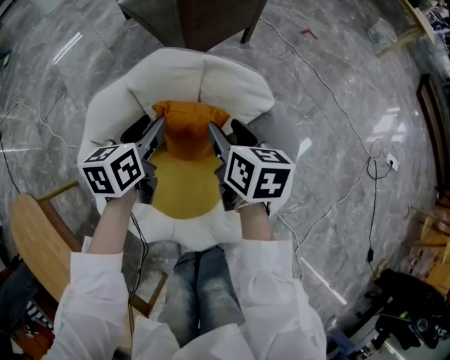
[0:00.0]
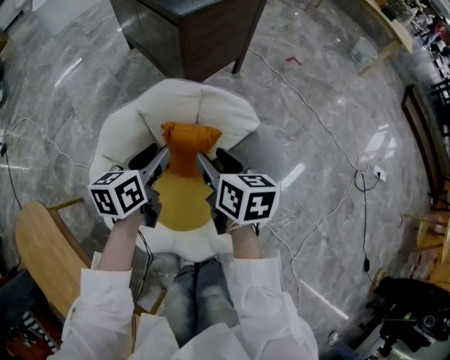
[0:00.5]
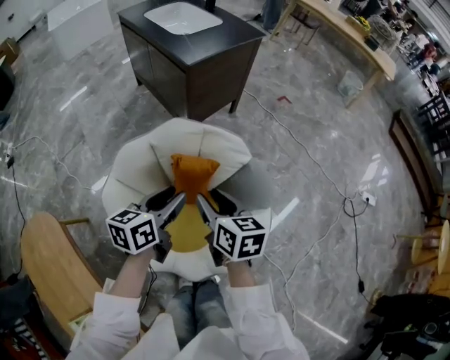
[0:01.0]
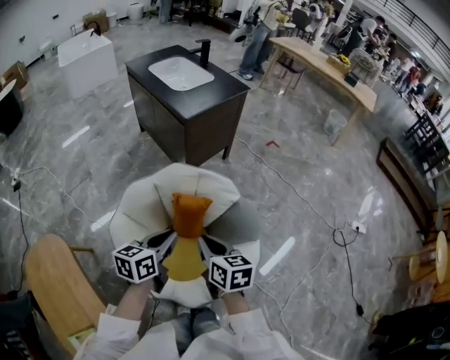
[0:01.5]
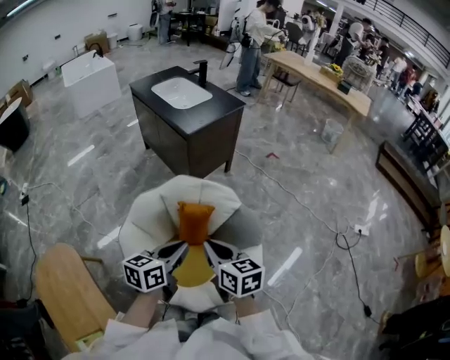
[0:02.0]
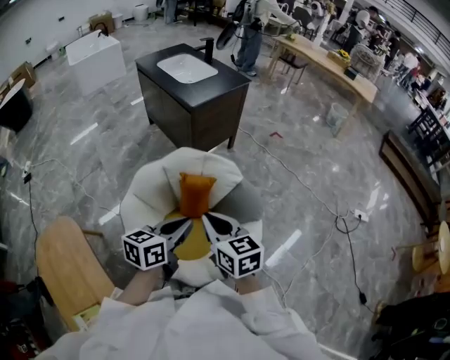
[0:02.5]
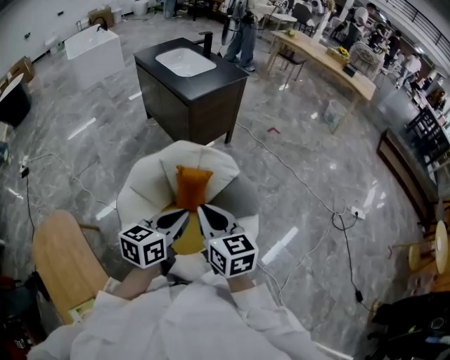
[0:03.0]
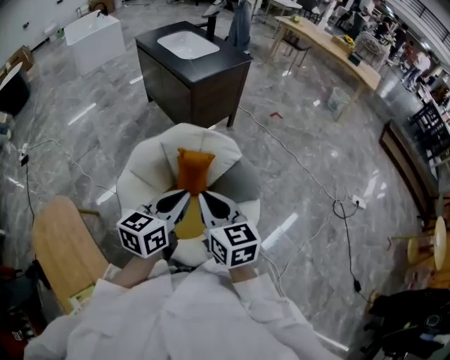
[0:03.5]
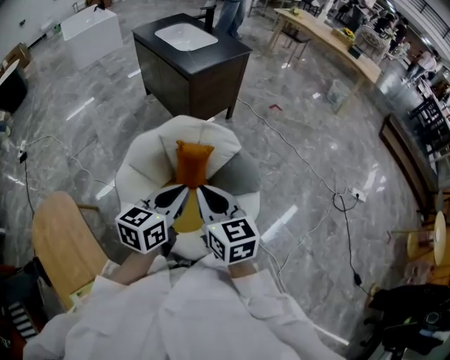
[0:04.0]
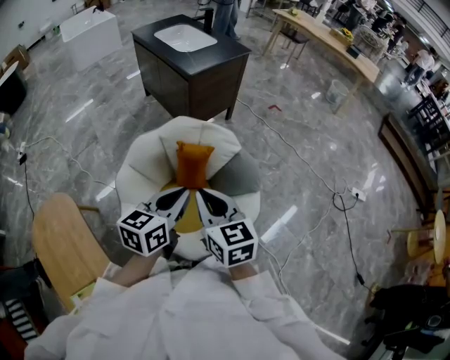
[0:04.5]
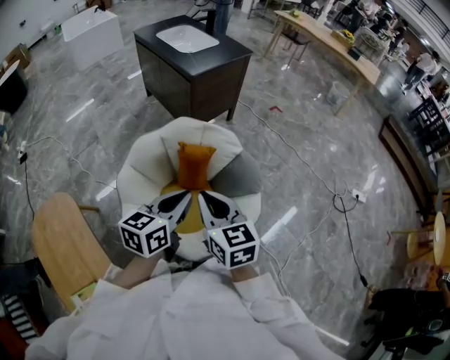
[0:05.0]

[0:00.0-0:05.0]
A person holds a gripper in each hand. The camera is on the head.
0:00.0 to 0:02.5: The grippers both shift upward and backward by roughly 50 cm. The left gripper changes its angle by roughly 20 degrees, and closes up. The right gripper rotates about 30 degrees, and closes up.
0:02.5 to 0:05.0: The grippers make only small movements.

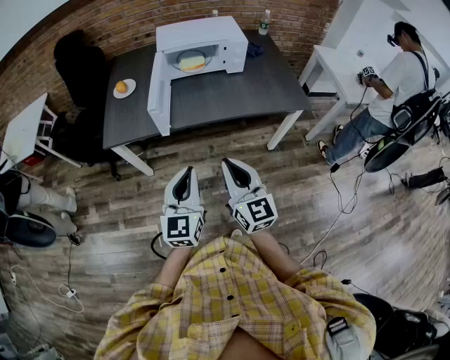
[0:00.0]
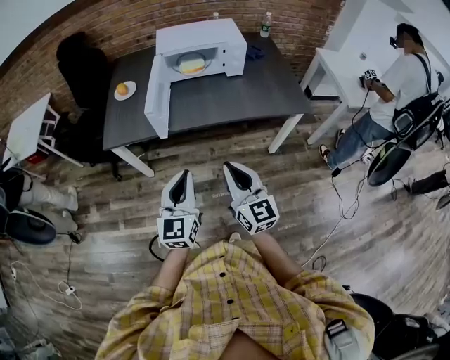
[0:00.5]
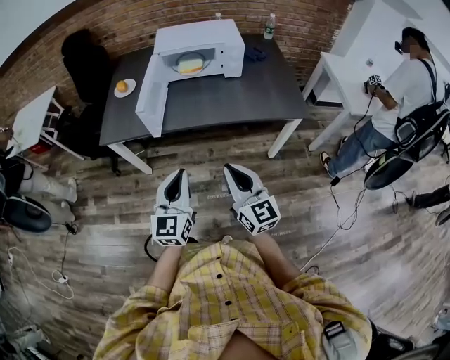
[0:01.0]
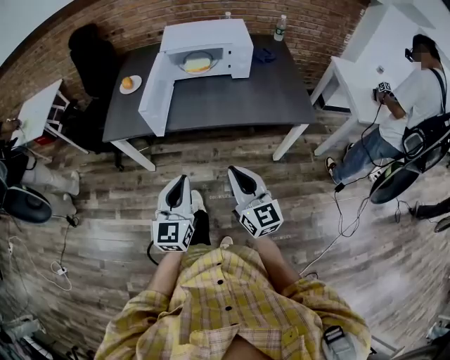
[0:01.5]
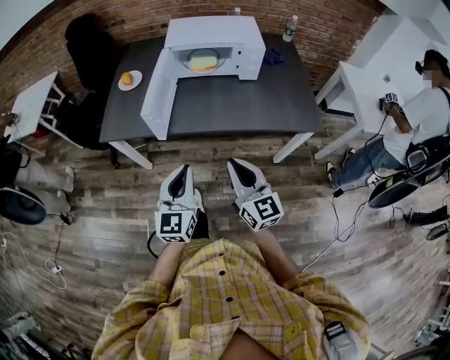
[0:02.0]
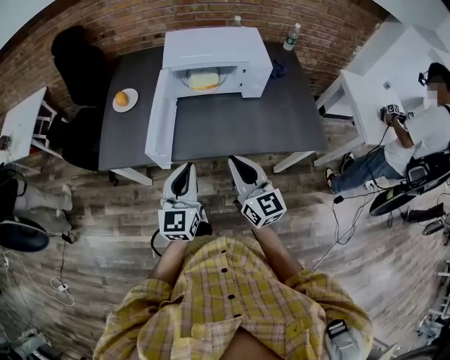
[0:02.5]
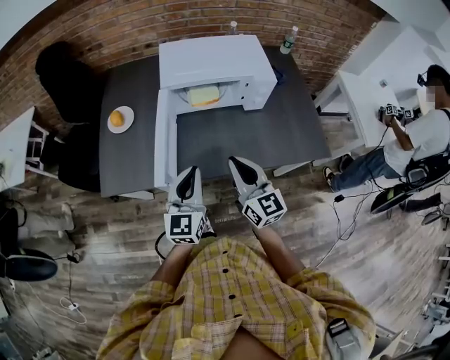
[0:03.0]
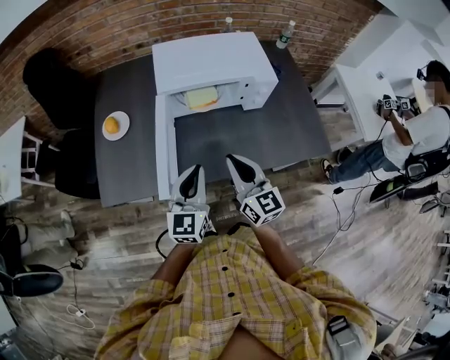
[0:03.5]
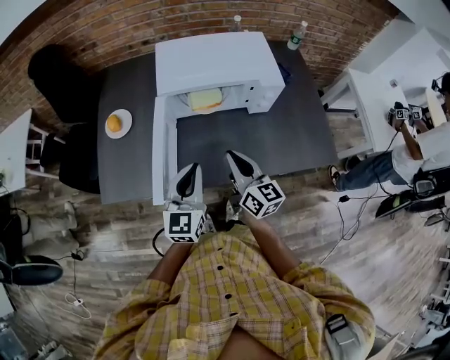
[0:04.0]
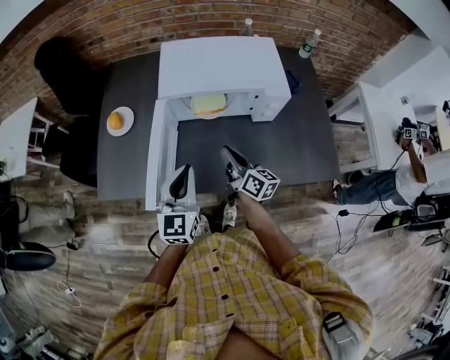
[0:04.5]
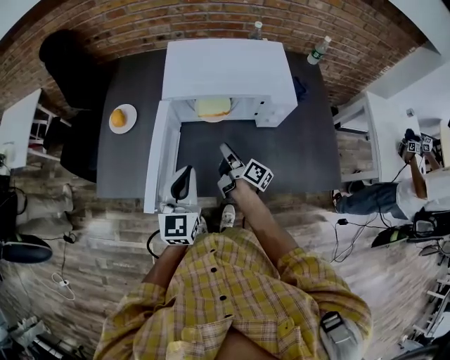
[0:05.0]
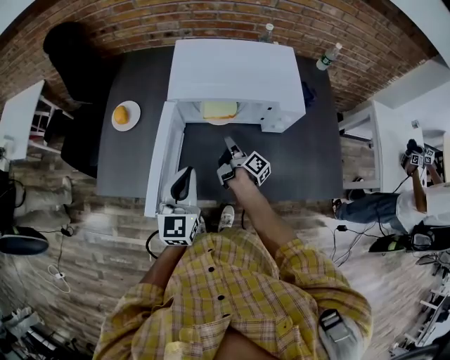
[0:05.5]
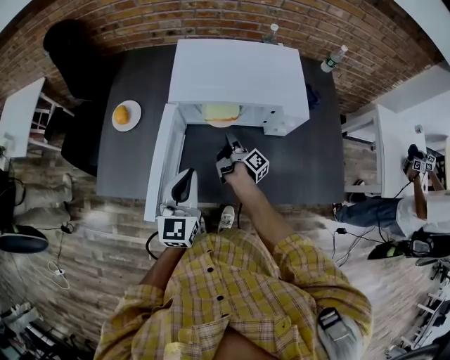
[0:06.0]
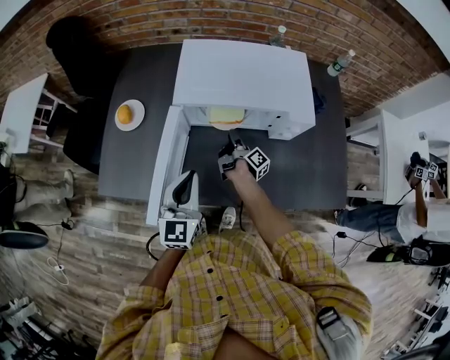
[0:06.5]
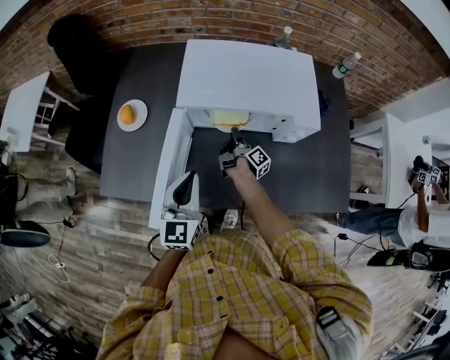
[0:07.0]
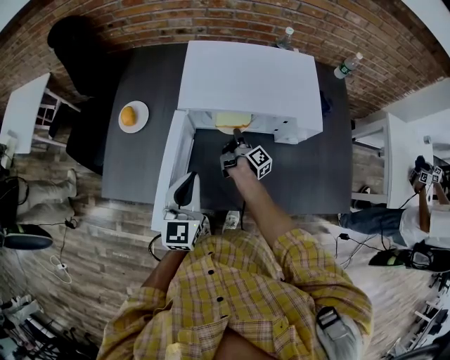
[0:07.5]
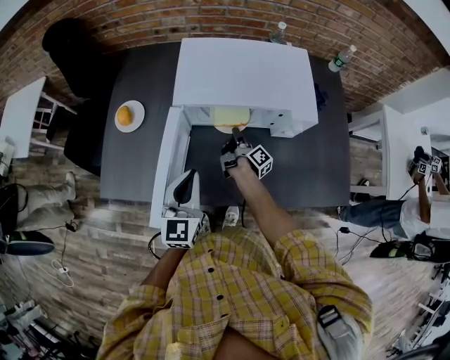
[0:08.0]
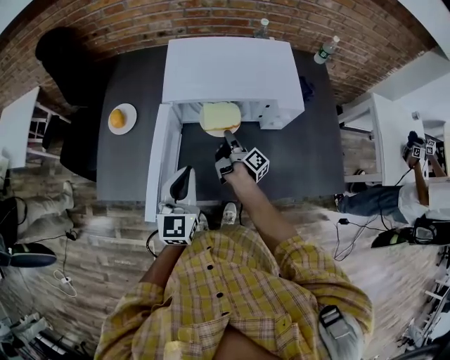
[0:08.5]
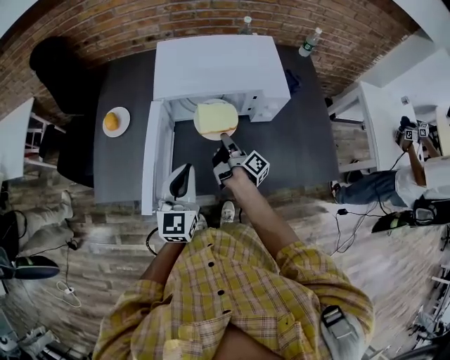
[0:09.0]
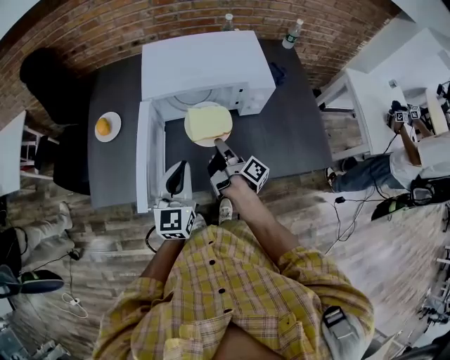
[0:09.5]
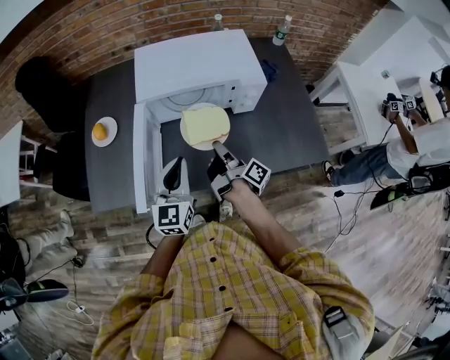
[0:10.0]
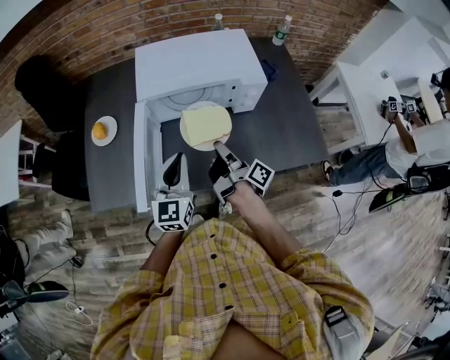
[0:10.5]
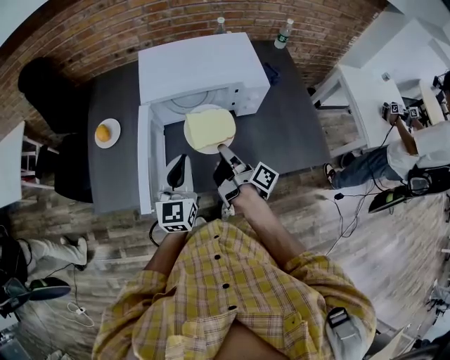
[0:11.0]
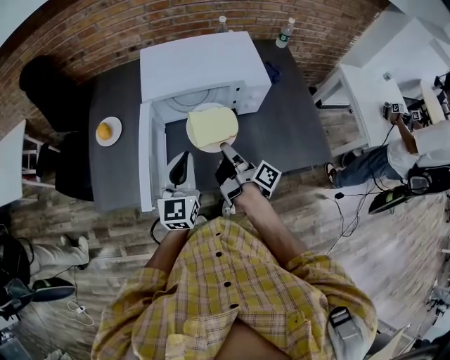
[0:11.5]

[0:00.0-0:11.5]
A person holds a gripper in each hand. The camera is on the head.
0:00.0 to 0:02.0: The right gripper shifts about 10 cm forward and to the right; the left gripper travels forward by about 5 cm.
0:02.0 to 0:04.0: Both grippers travel together forward, some 30 cm. The right gripper rotates approximately 20 degrees.
0:04.0 to 0:06.0: The left gripper shifts about 5 cm forward; the right gripper heads downward and forward, covering roughly 30 cm, rotates around the line of its fingers by roughly 70 degrees, clockwise from behind, and opens up.
0:06.0 to 0:07.5: The right gripper moves some 5 cm.
0:07.5 to 0:09.5: The left gripper goes some 5 cm to the right, while the right gripper goes some 20 cm backward and upward.
0:09.5 to 0:11.5: The right gripper moves upward, about 5 cm.

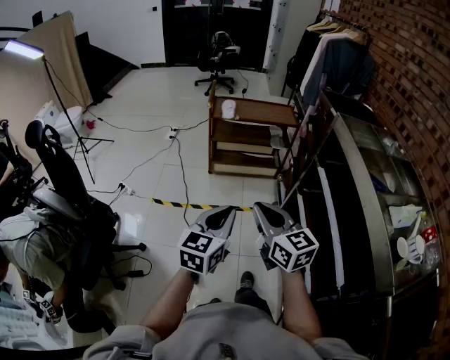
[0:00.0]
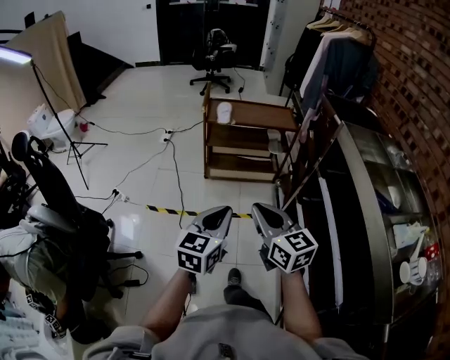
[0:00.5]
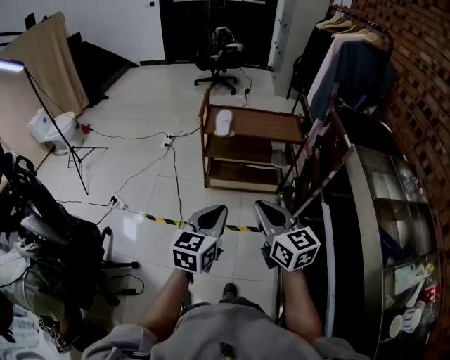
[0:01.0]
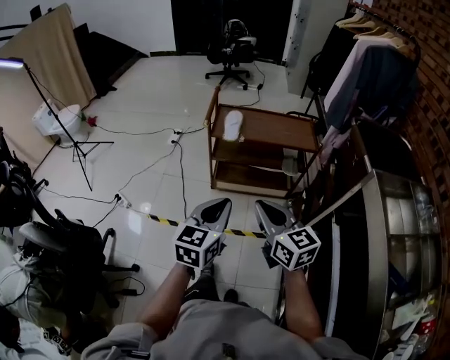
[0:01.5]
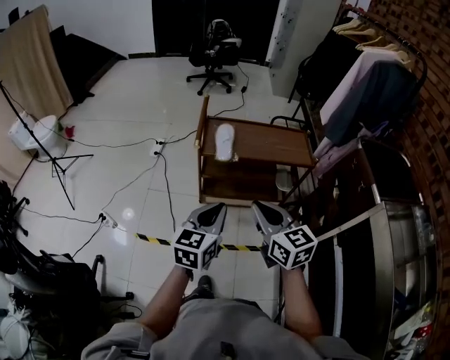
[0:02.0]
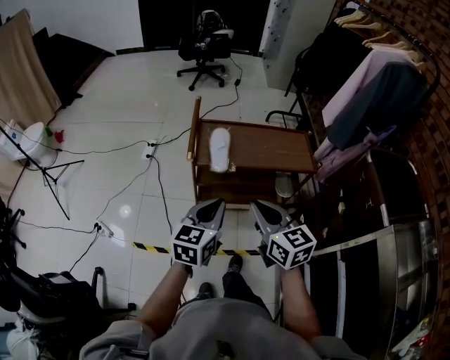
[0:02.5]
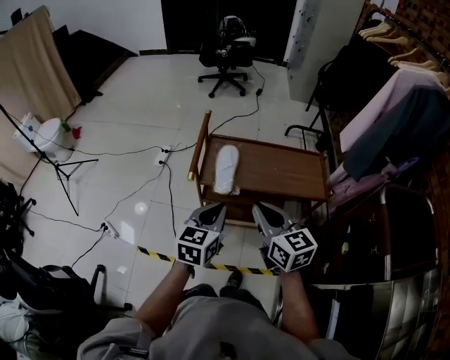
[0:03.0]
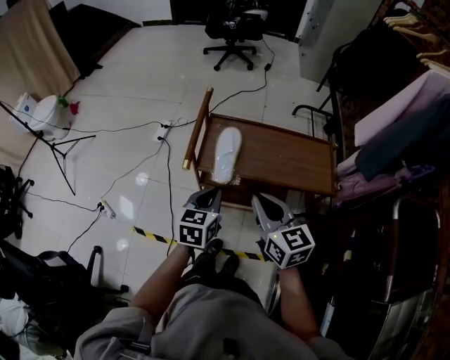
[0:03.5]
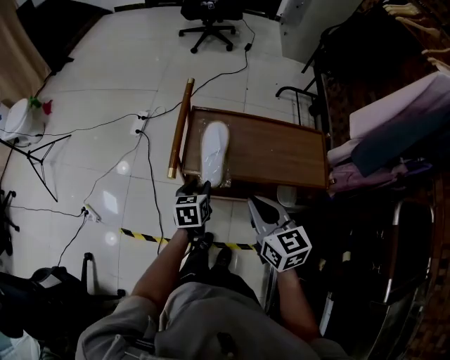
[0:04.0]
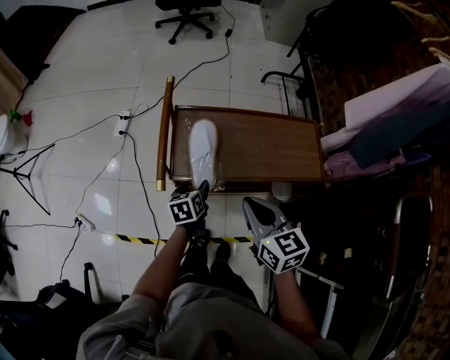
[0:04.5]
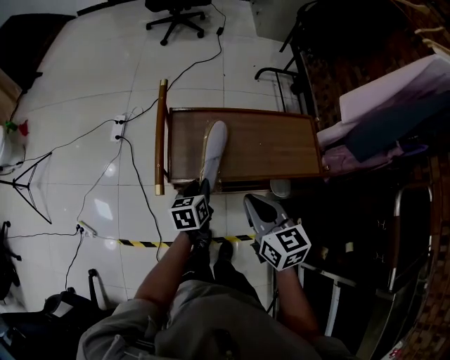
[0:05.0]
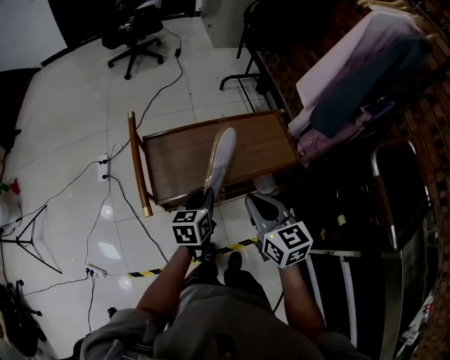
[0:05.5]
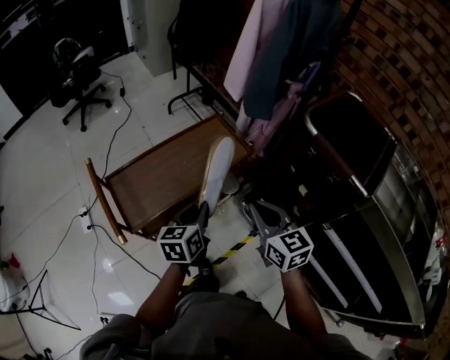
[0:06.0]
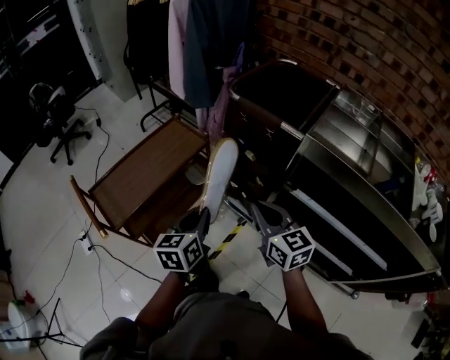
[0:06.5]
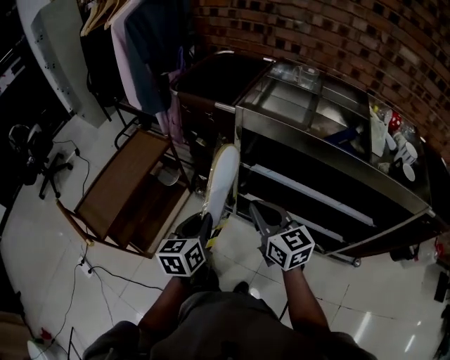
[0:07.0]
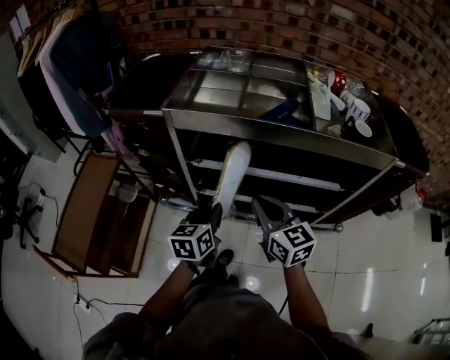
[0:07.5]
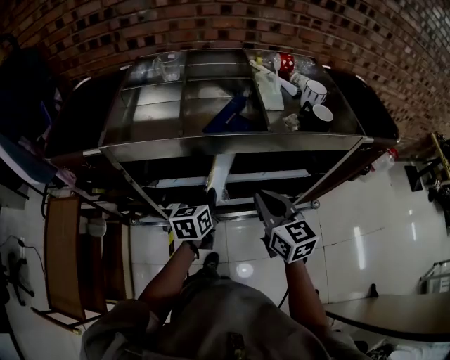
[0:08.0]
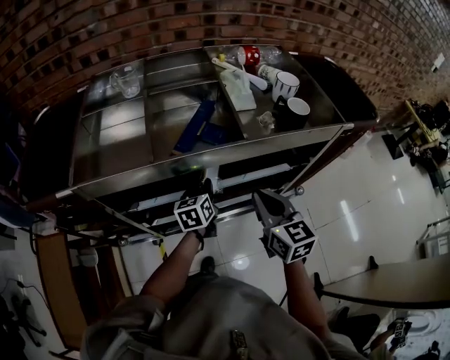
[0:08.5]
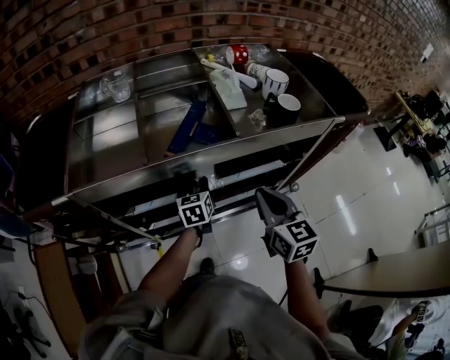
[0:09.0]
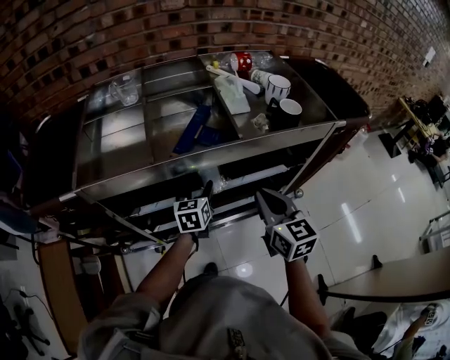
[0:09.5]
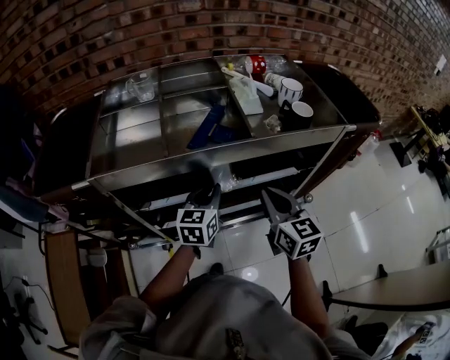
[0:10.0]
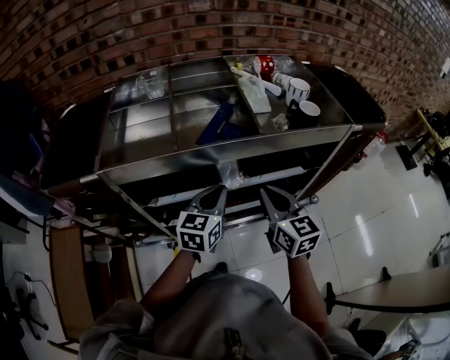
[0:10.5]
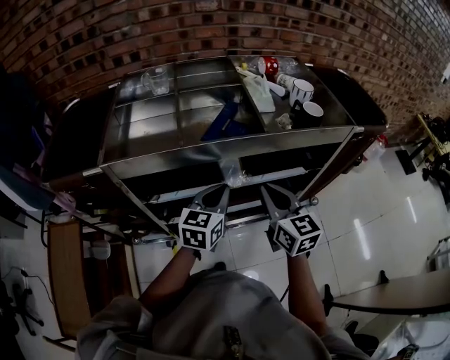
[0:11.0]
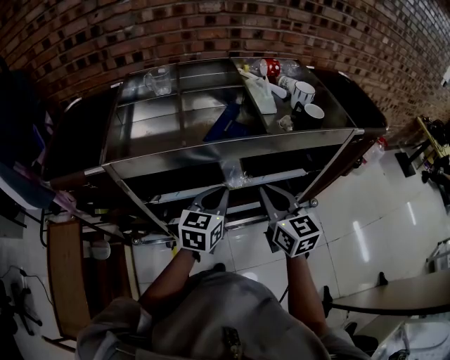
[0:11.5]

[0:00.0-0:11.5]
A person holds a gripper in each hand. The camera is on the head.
0:00.0 to 0:02.0: The two grippers travel together, forward, approximately 50 cm.
0:02.0 to 0:04.0: The left gripper shifts some 40 cm forward and downward, rotates some 30 degrees, and opens up. The right gripper moves forward, approximately 30 cm.
0:04.0 to 0:06.0: The left gripper ends up approximately 25 cm from where it was, swivels approximately 50 degrees, and closes. The right gripper moves some 20 cm, and turns by approximately 40 degrees.
0:06.0 to 0:07.5: Both grippers are carried roughly 50 cm. The right gripper turns by some 40 degrees. Meanwhile the left gripper turns by some 50 degrees.
0:07.5 to 0:09.5: The right gripper is displaced to the right and forward by approximately 15 cm, and turns by roughly 30 degrees; the left gripper goes some 25 cm forward and to the right, turns by approximately 20 degrees, and opens up.
0:09.5 to 0:11.5: The right gripper goes some 5 cm to the left; the left gripper travels backward and upward by approximately 15 cm, and closes up.
